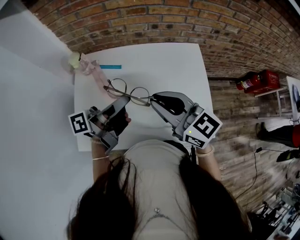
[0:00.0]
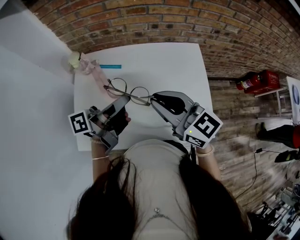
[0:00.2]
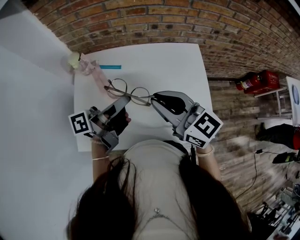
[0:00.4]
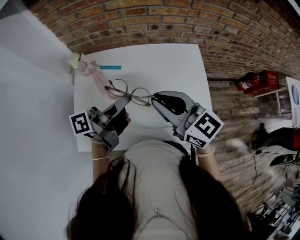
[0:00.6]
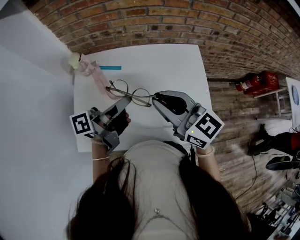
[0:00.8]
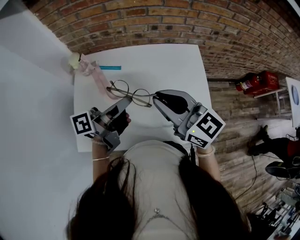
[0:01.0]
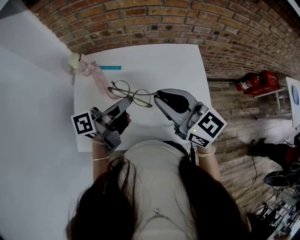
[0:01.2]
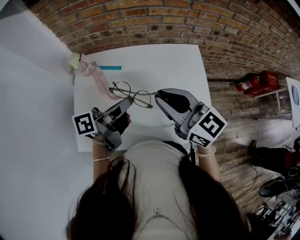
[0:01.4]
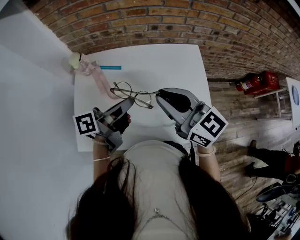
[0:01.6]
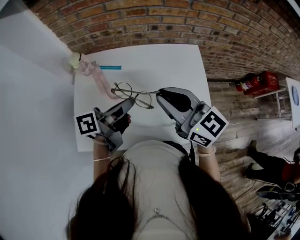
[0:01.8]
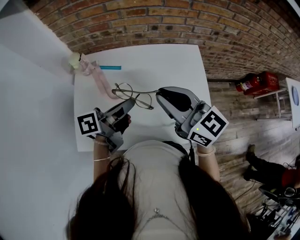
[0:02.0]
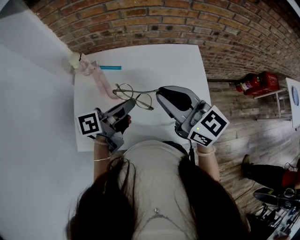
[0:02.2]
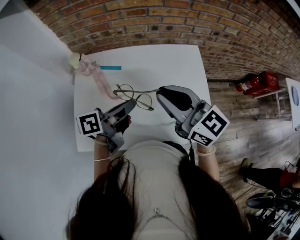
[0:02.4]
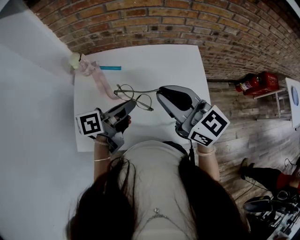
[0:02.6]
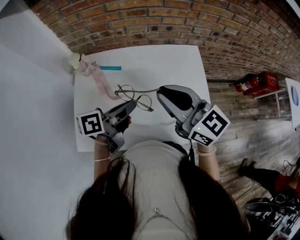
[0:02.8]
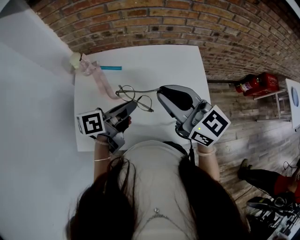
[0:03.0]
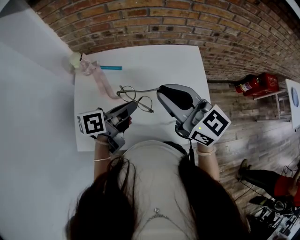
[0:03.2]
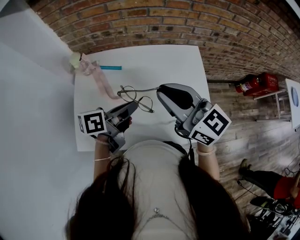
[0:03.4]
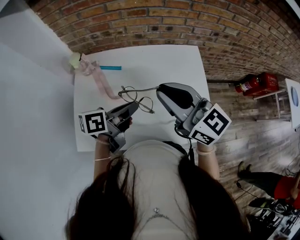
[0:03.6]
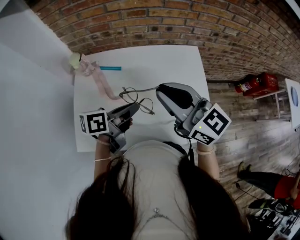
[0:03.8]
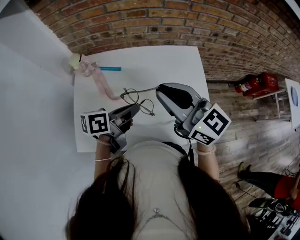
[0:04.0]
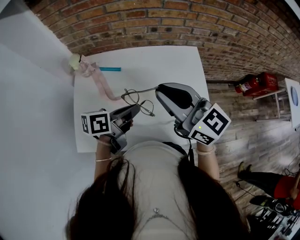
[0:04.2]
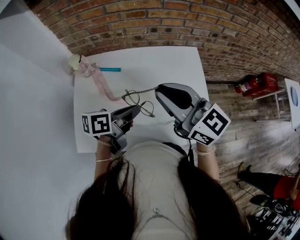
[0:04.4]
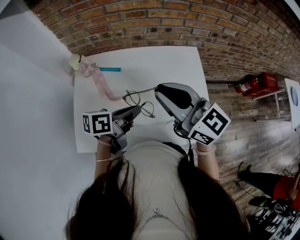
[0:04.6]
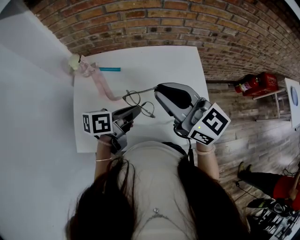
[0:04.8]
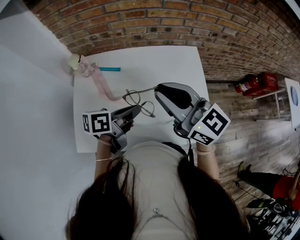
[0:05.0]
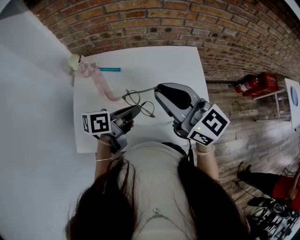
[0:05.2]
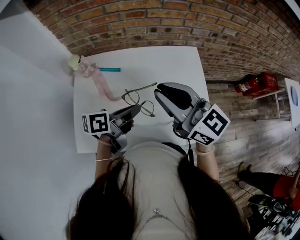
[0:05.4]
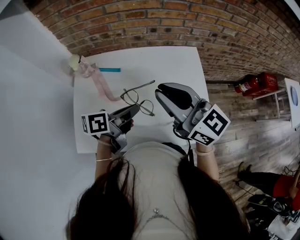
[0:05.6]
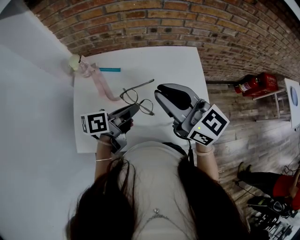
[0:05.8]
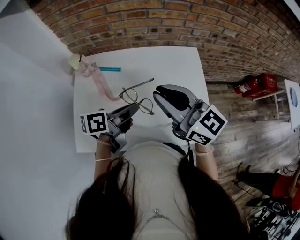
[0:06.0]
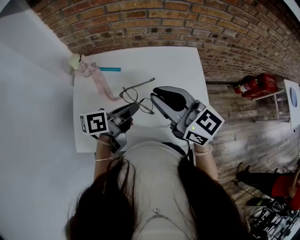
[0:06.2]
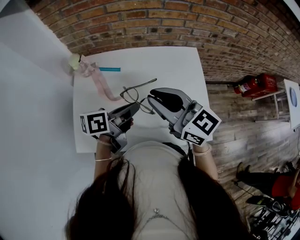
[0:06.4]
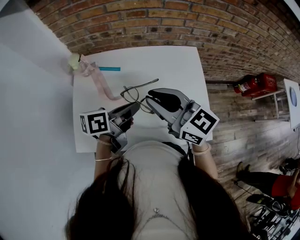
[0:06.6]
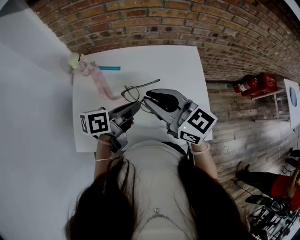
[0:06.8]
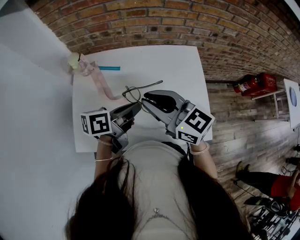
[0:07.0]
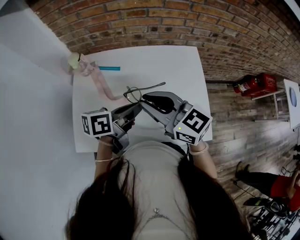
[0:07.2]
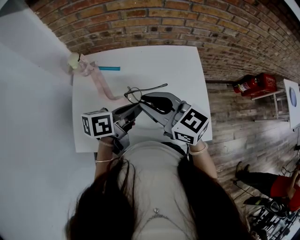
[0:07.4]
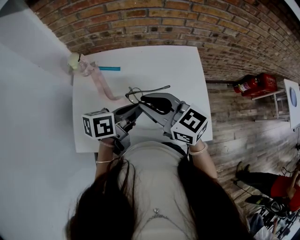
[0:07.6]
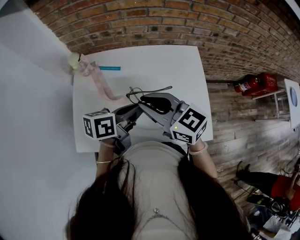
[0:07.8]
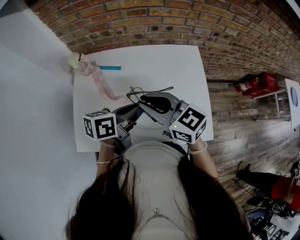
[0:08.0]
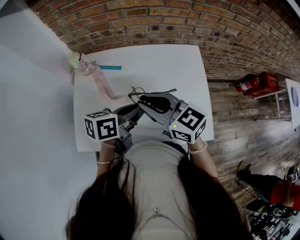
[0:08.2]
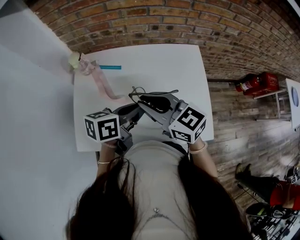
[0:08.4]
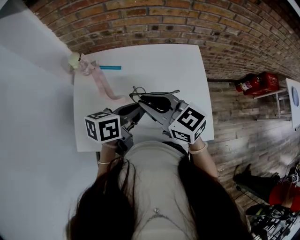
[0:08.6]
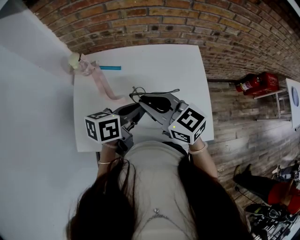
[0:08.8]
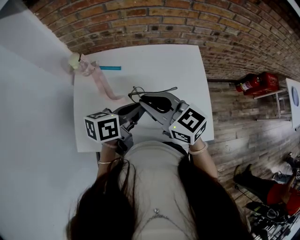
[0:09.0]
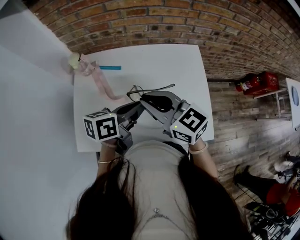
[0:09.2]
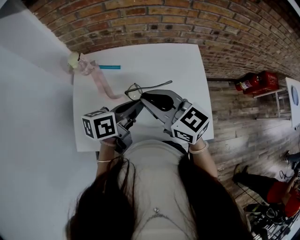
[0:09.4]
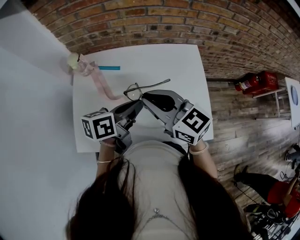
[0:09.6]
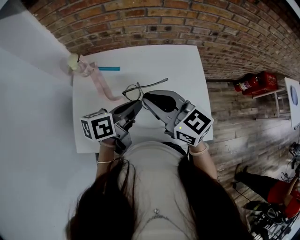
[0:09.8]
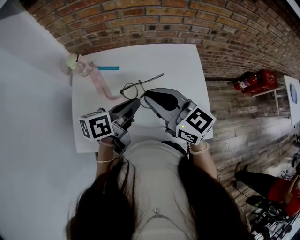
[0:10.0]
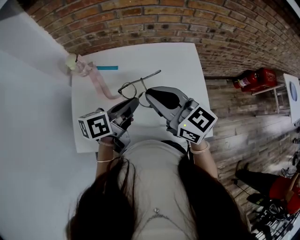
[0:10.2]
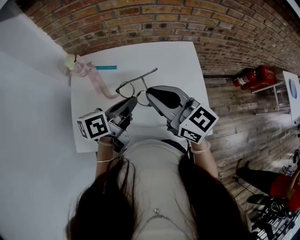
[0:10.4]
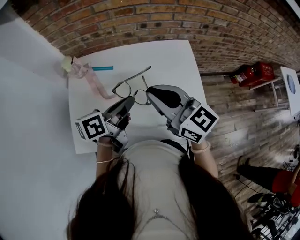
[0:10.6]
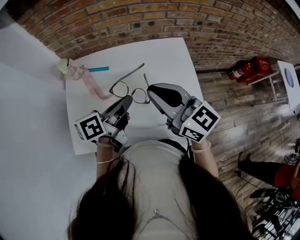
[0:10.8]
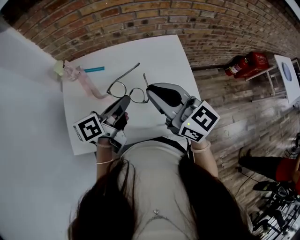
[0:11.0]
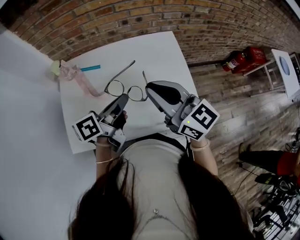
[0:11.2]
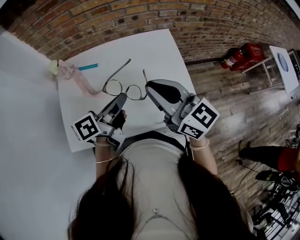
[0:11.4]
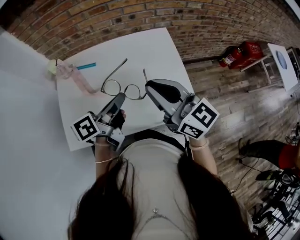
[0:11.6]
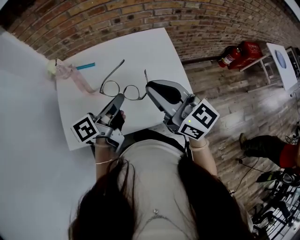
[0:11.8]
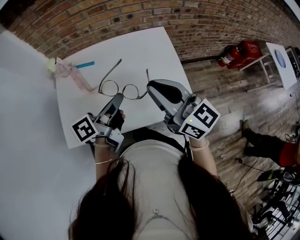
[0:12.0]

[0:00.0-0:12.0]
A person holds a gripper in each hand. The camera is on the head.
0.0 to 1.6 s: There are only small adjustments of the grippers.
1.6 to 3.0 s: The grippers make only small movements.
3.0 to 6.0 s: The grippers stay close to where they were, moving slightly.
6.0 to 7.6 s: The right gripper goes approximately 5 cm downward.
7.6 to 9.0 s: There are only small adjustments of the grippers.
9.0 to 10.4 s: The right gripper changes place by about 5 cm.
10.4 to 12.0 s: The right gripper is displaced to the right and backward by approximately 15 cm. Meanwhile the left gripper heads backward and to the right, covering about 10 cm.

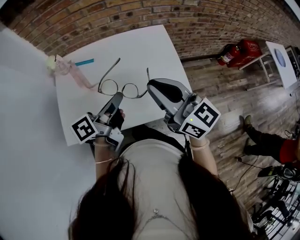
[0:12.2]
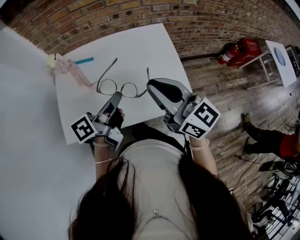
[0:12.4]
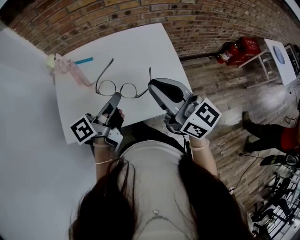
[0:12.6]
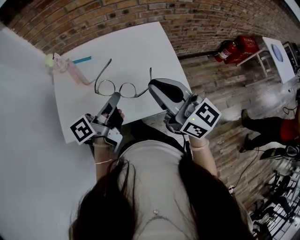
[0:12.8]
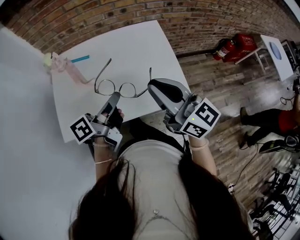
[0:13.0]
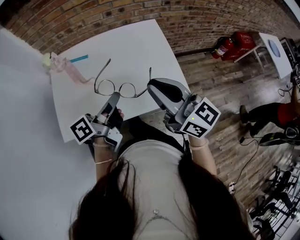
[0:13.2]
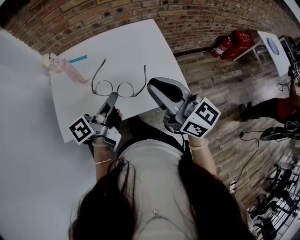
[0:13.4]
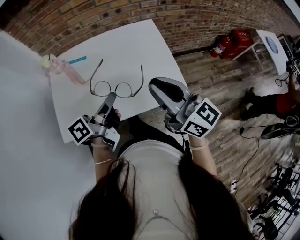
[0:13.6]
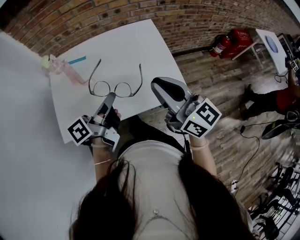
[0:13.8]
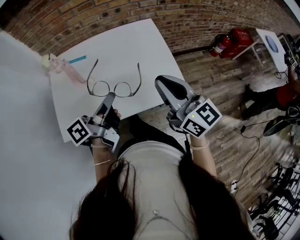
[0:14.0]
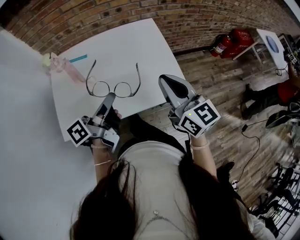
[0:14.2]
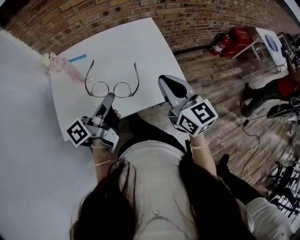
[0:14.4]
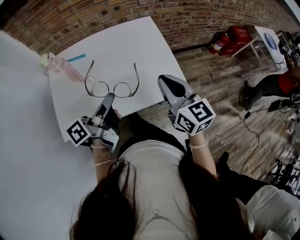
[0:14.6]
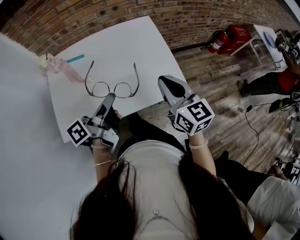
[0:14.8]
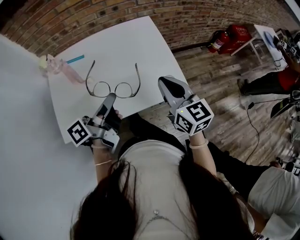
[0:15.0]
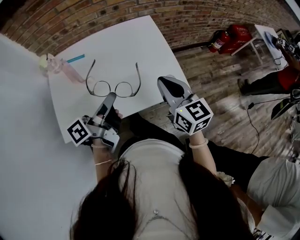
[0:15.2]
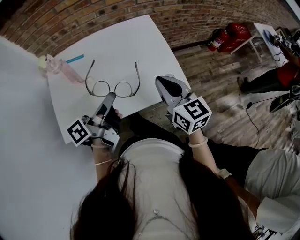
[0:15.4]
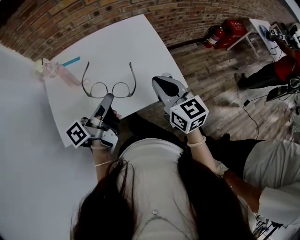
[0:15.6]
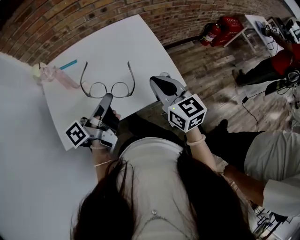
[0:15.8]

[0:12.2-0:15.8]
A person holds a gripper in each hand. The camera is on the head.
12.2 to 14.0 s: The right gripper is displaced backward and to the right by about 5 cm. Meanwhile the left gripper shifts about 5 cm backward.
14.0 to 15.8 s: The right gripper is displaced downward by about 10 cm, and swivels some 20 degrees.

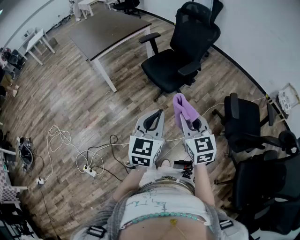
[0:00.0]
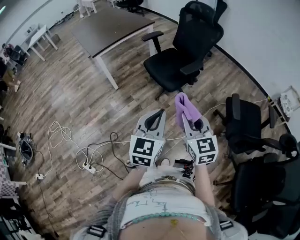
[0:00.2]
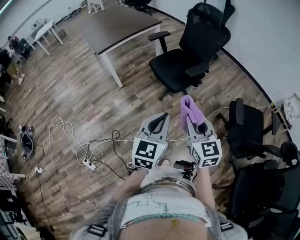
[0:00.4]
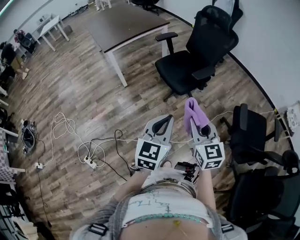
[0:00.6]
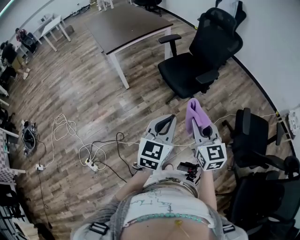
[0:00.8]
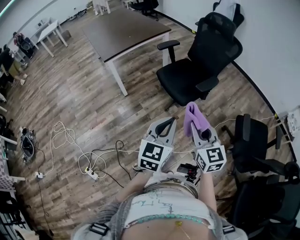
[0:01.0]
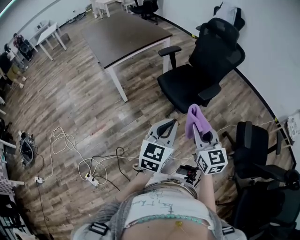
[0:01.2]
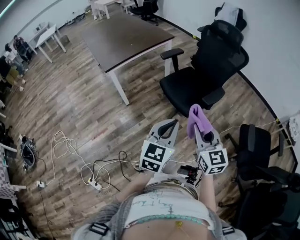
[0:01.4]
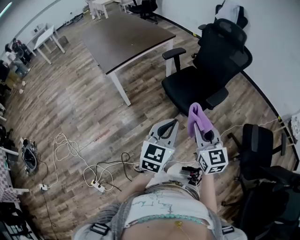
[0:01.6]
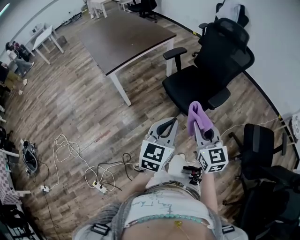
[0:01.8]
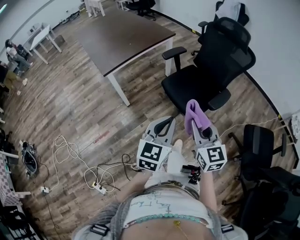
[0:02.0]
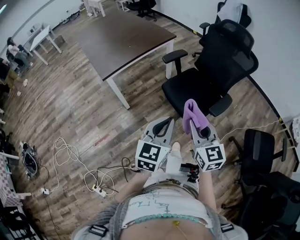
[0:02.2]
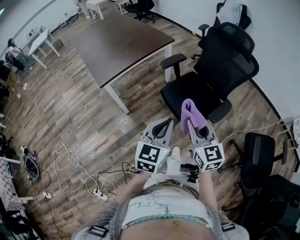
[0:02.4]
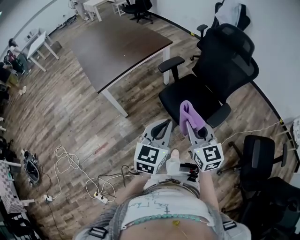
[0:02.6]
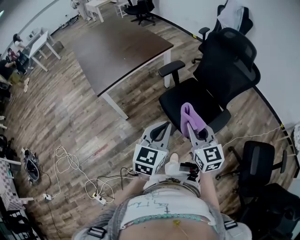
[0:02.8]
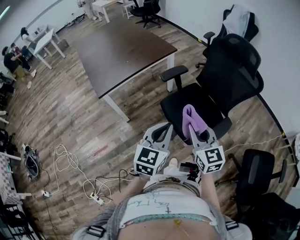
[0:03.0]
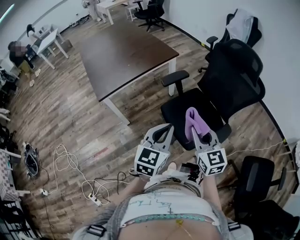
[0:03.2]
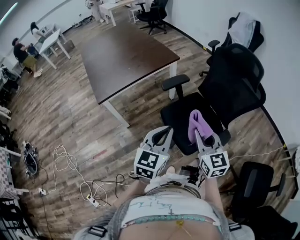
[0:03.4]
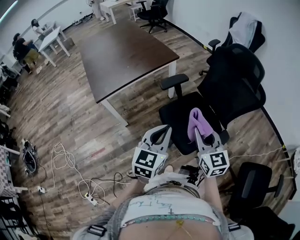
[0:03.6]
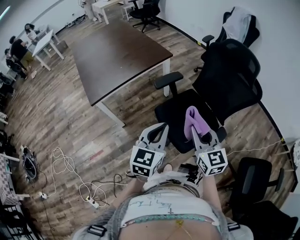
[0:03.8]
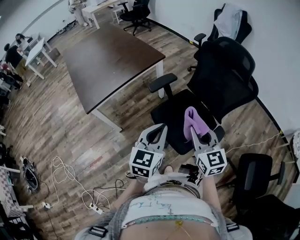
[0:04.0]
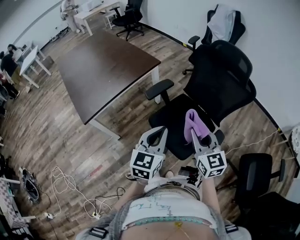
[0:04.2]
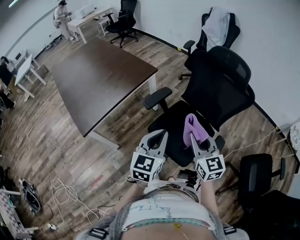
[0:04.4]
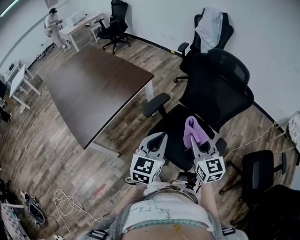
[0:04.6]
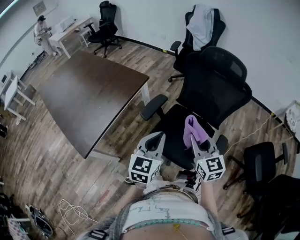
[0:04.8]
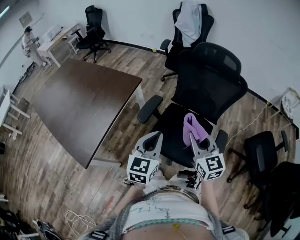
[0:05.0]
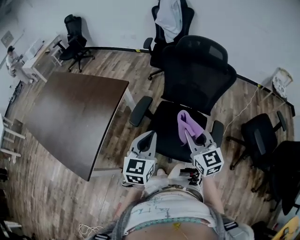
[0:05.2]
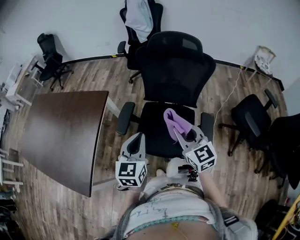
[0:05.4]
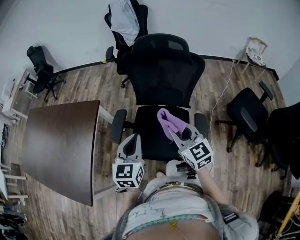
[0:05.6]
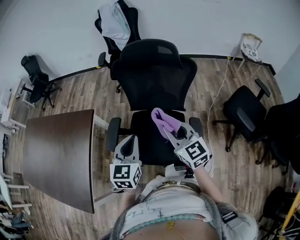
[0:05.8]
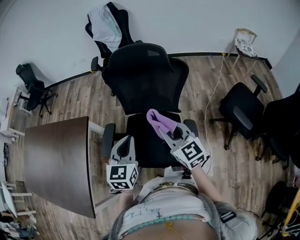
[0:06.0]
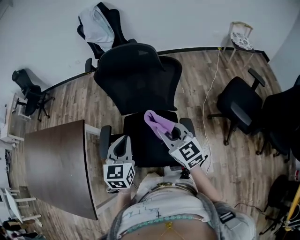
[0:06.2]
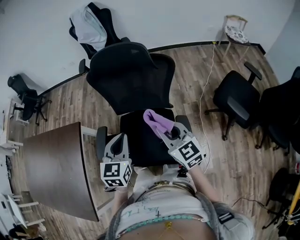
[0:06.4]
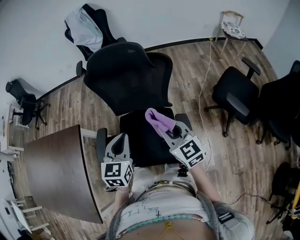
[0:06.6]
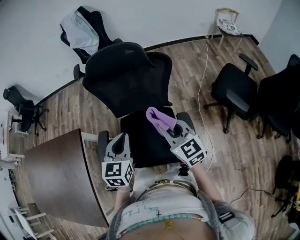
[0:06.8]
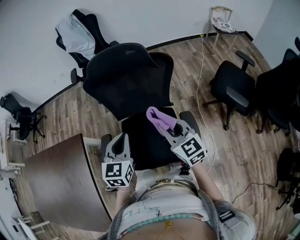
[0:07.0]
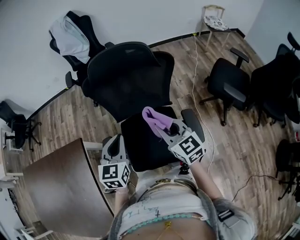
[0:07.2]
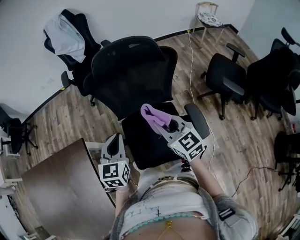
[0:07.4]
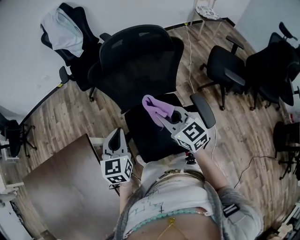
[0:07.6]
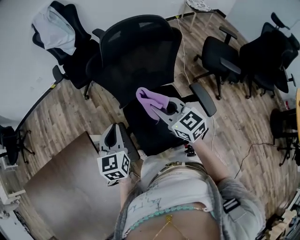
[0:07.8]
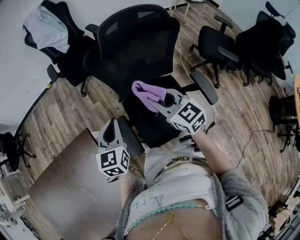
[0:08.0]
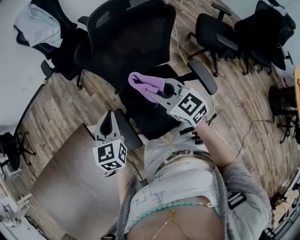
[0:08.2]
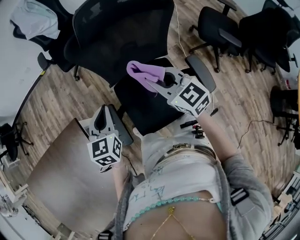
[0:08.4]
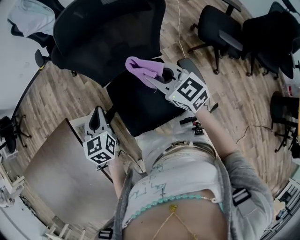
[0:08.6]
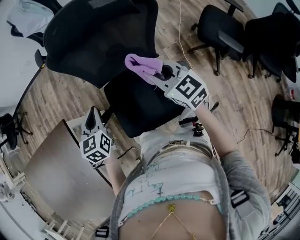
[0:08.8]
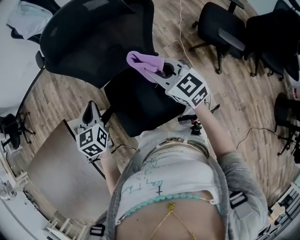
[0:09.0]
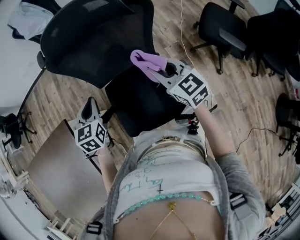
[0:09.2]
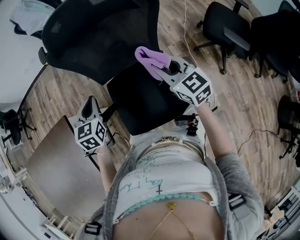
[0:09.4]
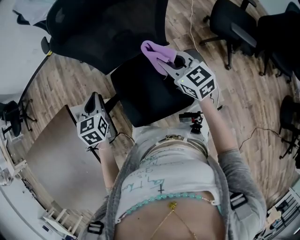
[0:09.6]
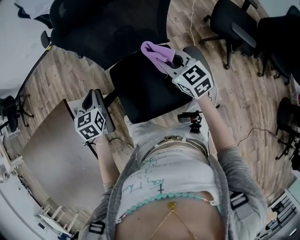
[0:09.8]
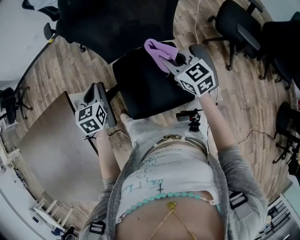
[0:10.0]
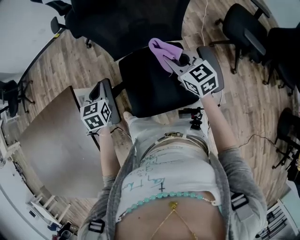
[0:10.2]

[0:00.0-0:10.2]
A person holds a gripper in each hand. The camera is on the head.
0.0 to 1.4 s: The two grippers go some 20 cm forward and to the left.
1.4 to 3.0 s: The two grippers go some 30 cm forward.
3.0 to 4.4 s: Both grippers move forward, approximately 15 cm.
4.4 to 5.8 s: The grippers both shift forward by roughly 15 cm. The left gripper turns by approximately 30 degrees; the right gripper swivels some 20 degrees.
5.8 to 7.2 s: The left gripper travels forward by approximately 15 cm. The right gripper goes approximately 10 cm forward, and reaches about 10 cm to the right, then returns.
7.2 to 8.8 s: The right gripper goes approximately 10 cm forward and downward, and travels to the left and back again, approximately 15 cm each way; the left gripper moves downward and forward, roughly 10 cm, and moves some 15 cm to the left and comes back.
8.8 to 10.2 s: The left gripper travels downward and to the left by approximately 10 cm, while the right gripper is displaced downward by roughly 10 cm.
